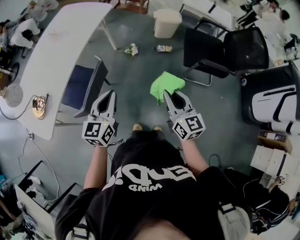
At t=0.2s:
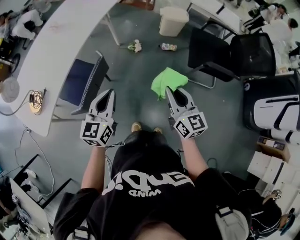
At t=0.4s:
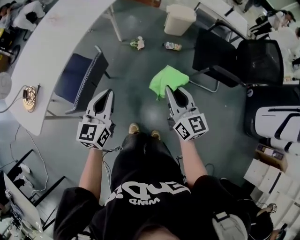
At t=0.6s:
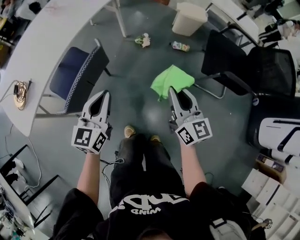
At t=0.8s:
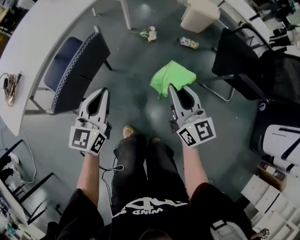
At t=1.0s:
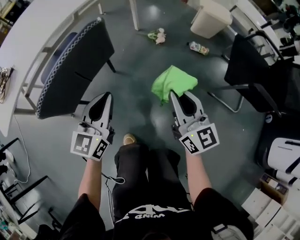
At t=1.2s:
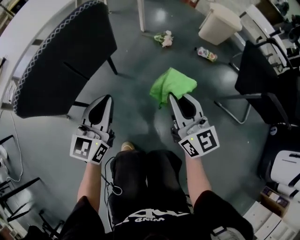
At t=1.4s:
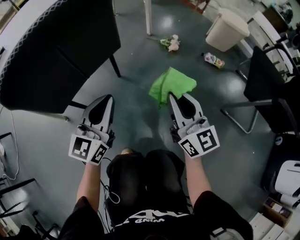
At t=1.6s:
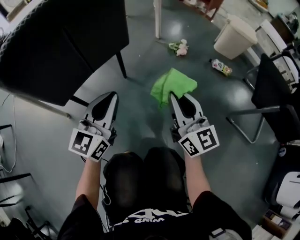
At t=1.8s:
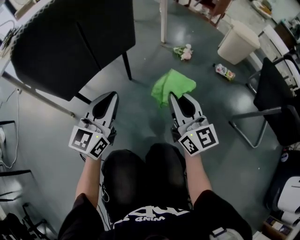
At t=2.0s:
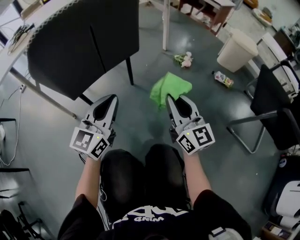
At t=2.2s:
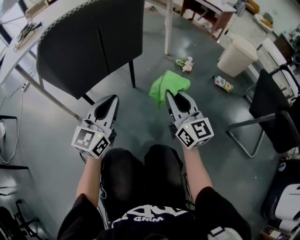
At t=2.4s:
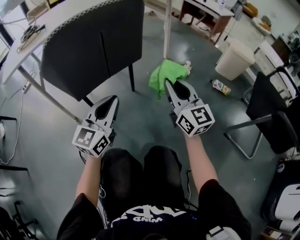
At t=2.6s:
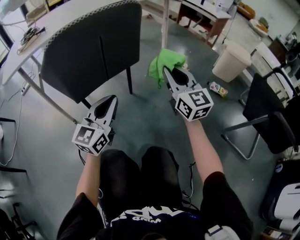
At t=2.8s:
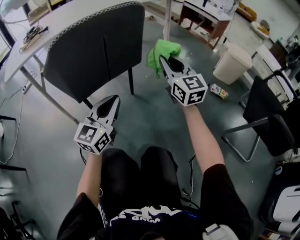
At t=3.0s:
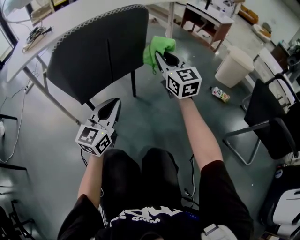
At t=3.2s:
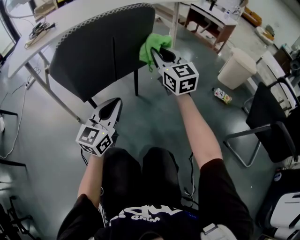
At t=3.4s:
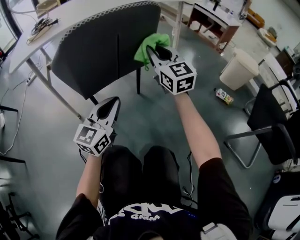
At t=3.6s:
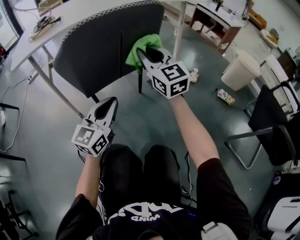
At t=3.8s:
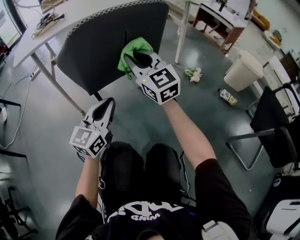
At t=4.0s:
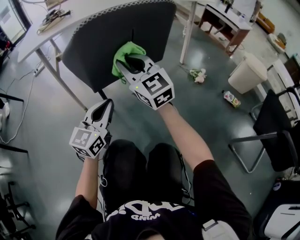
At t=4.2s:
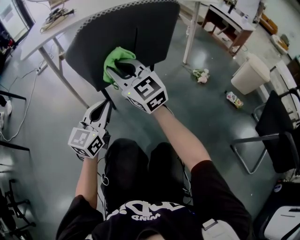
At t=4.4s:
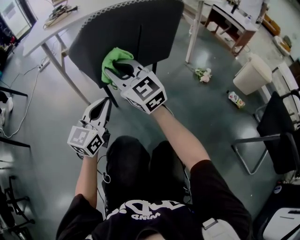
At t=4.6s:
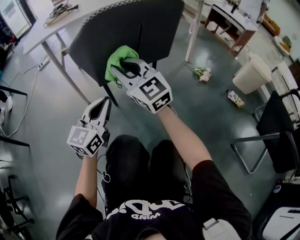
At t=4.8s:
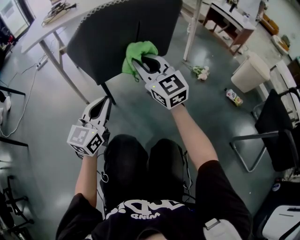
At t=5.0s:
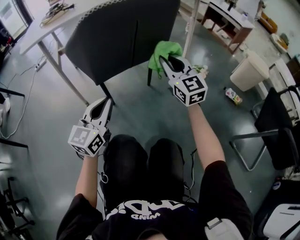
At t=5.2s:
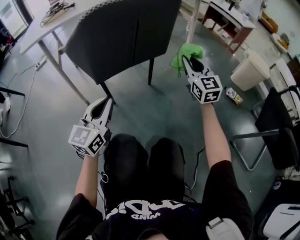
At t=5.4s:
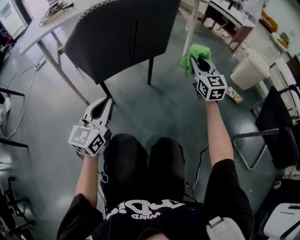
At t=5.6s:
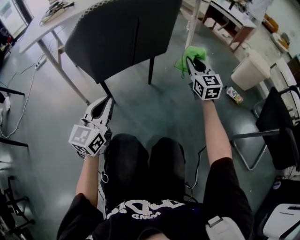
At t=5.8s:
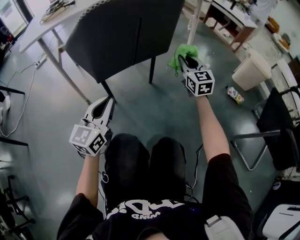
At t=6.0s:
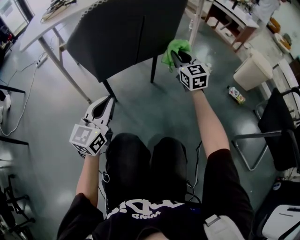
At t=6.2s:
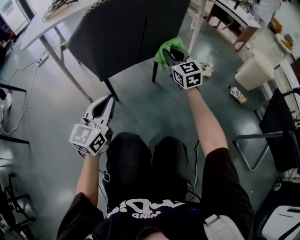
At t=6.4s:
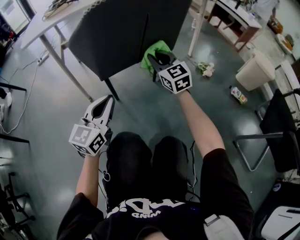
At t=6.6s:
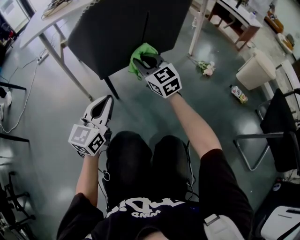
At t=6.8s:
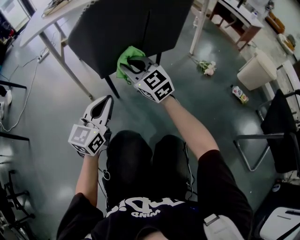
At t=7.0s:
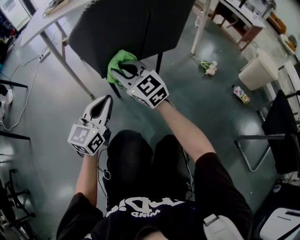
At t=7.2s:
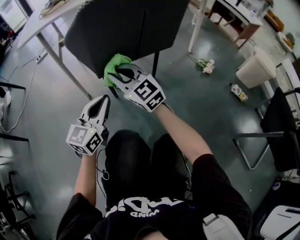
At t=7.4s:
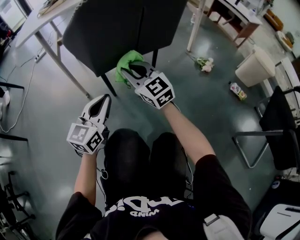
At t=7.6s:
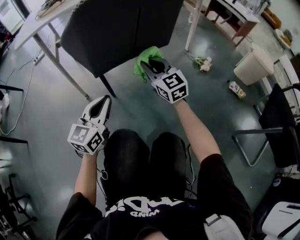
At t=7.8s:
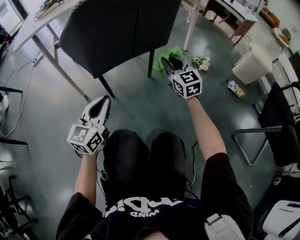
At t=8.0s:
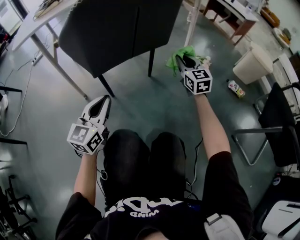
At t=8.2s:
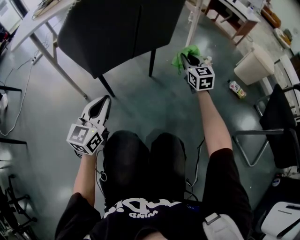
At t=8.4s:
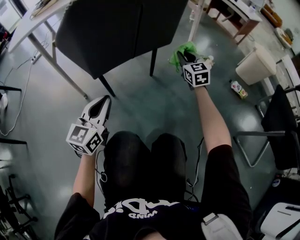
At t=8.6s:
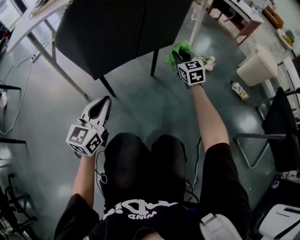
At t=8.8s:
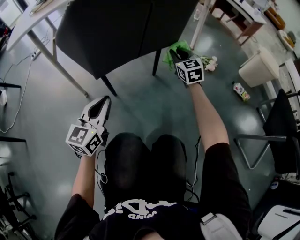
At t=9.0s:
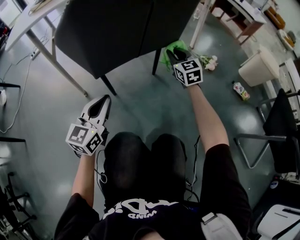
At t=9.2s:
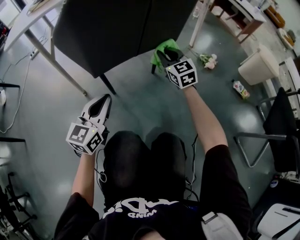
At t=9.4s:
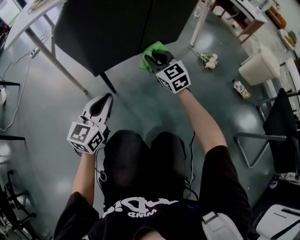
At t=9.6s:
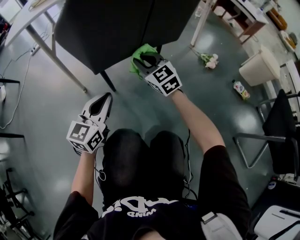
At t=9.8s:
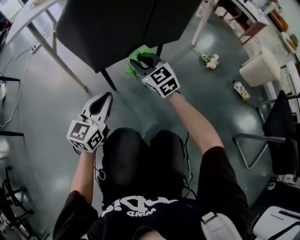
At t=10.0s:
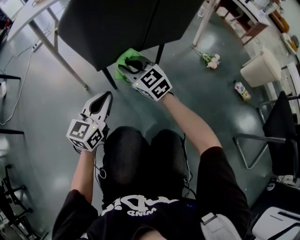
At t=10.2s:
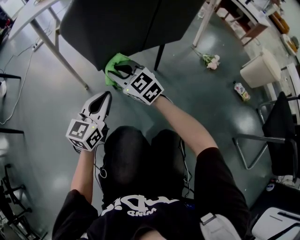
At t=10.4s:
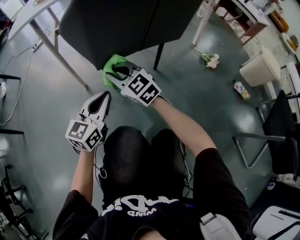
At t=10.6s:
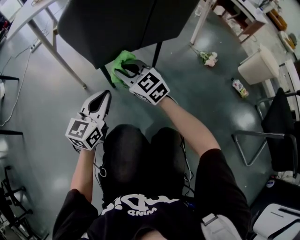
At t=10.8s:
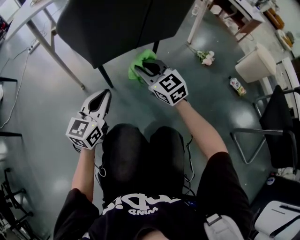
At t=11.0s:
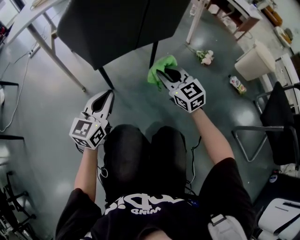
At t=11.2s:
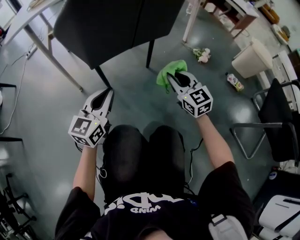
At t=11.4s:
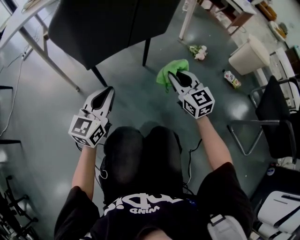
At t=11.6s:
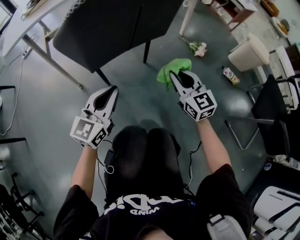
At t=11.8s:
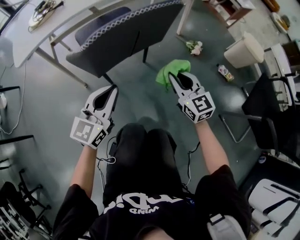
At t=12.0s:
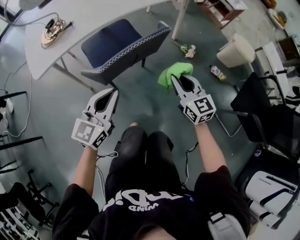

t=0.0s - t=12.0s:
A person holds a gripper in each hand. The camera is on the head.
t=0.0s - t=1.6s: The grippers both shift downward by roughly 50 cm. The left gripper swivels about 20 degrees. Meanwhile the right gripper swivels approximately 30 degrees.
t=1.6s - t=3.0s: The left gripper ends up some 5 cm from where it was. Meanwhile the right gripper goes roughly 20 cm forward, upward and to the left.
t=3.0s - t=4.4s: The right gripper travels to the left by some 25 cm, and changes its angle by approximately 30 degrees. Meanwhile the left gripper shifts approximately 10 cm to the left.
t=4.4s - t=6.0s: The right gripper moves to the right, forward and downward, some 30 cm, and rotates some 30 degrees.
t=6.0s - t=7.6s: The right gripper travels to the left and backward by roughly 15 cm.
t=7.6s - t=9.0s: The right gripper shifts about 15 cm forward, to the right and downward.
t=9.0s - t=10.4s: The right gripper heads to the left and backward, covering some 30 cm, and rotates roughly 30 degrees.
t=10.4s - t=12.0s: The left gripper shifts about 35 cm upward. The right gripper goes approximately 40 cm upward and to the right, and rotates about 40 degrees.

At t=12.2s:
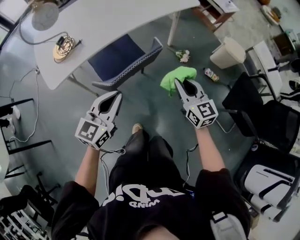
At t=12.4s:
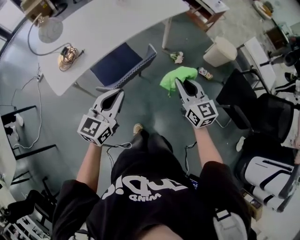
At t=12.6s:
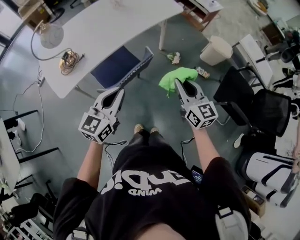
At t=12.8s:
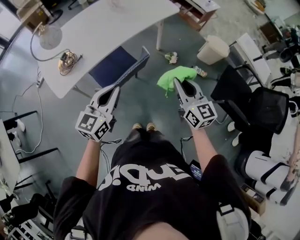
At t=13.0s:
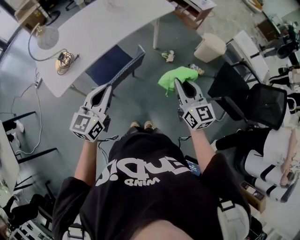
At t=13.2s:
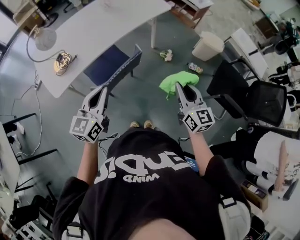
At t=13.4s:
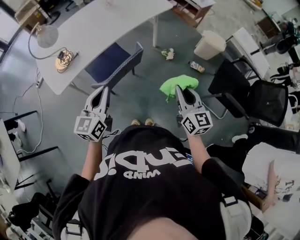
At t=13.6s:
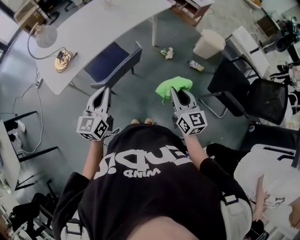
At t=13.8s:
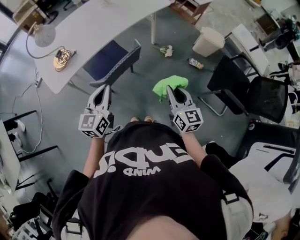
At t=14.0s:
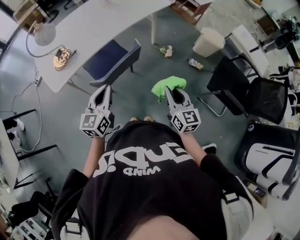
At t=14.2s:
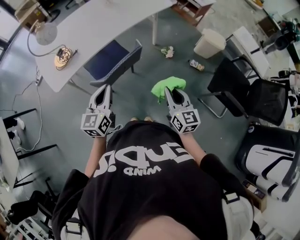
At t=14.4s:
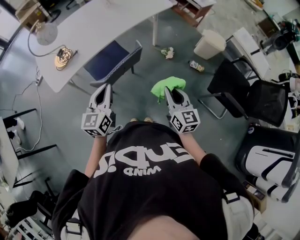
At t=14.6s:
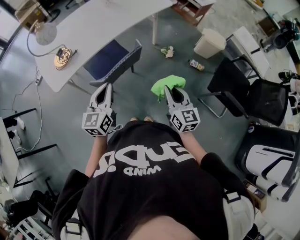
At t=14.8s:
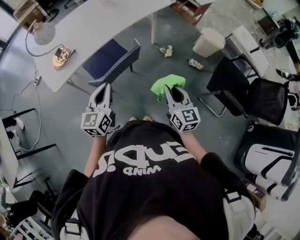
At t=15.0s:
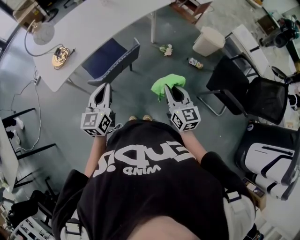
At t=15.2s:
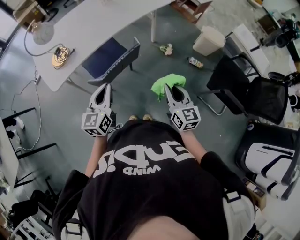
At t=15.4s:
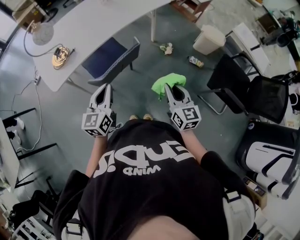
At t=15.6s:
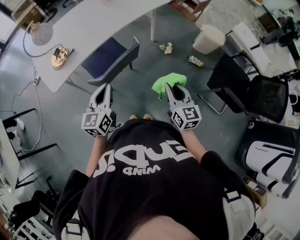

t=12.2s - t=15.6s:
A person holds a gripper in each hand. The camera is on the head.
t=12.2s - t=13.8s: The right gripper is displaced backward, upward and to the right by about 15 cm; the left gripper goes approximately 10 cm upward.
t=13.8s - t=15.6s: The grippers stay close to where they were, moving slightly.

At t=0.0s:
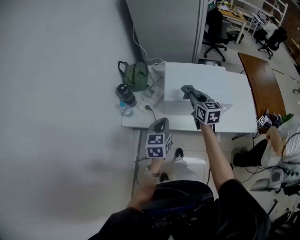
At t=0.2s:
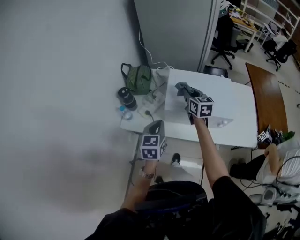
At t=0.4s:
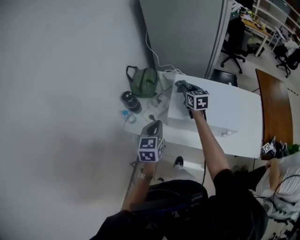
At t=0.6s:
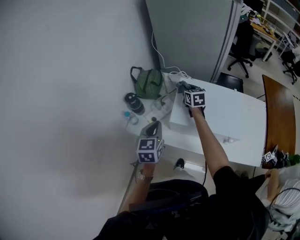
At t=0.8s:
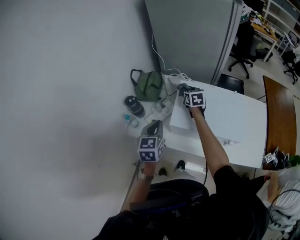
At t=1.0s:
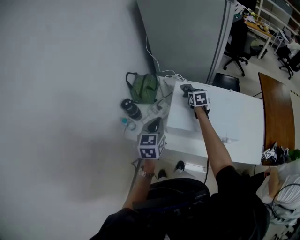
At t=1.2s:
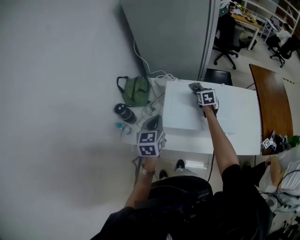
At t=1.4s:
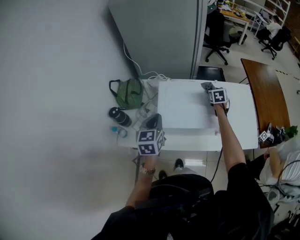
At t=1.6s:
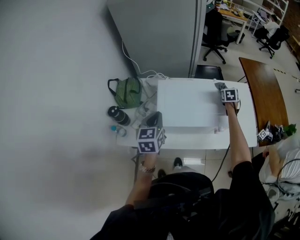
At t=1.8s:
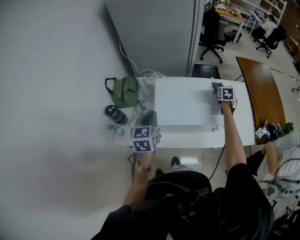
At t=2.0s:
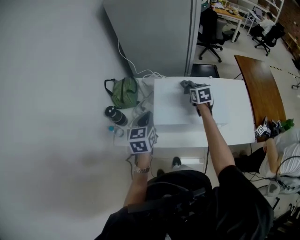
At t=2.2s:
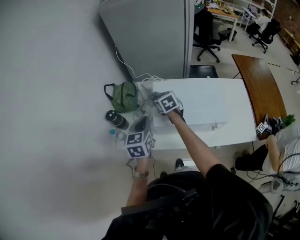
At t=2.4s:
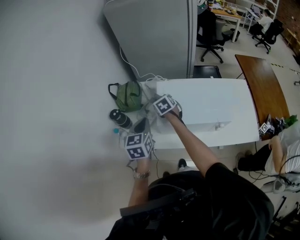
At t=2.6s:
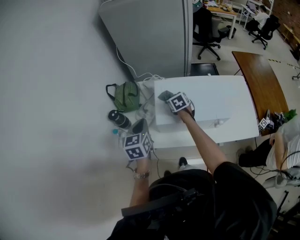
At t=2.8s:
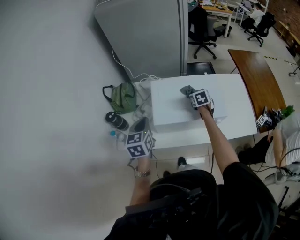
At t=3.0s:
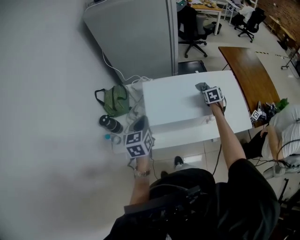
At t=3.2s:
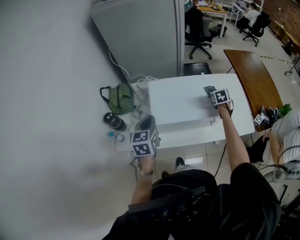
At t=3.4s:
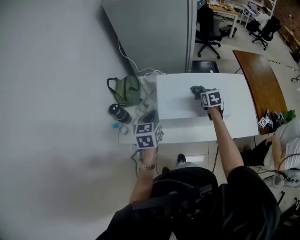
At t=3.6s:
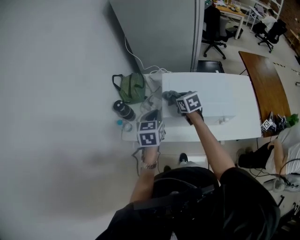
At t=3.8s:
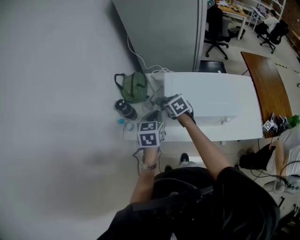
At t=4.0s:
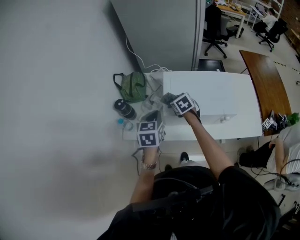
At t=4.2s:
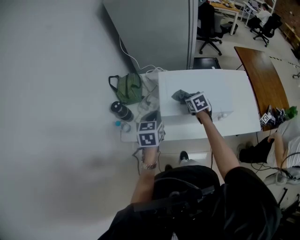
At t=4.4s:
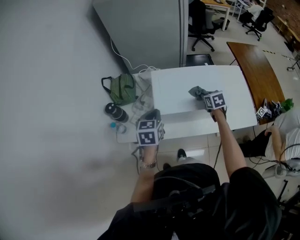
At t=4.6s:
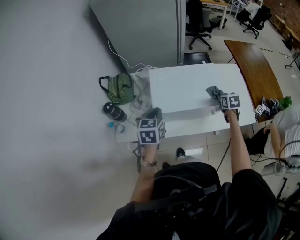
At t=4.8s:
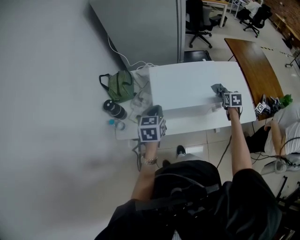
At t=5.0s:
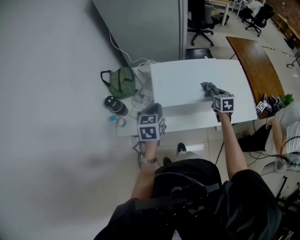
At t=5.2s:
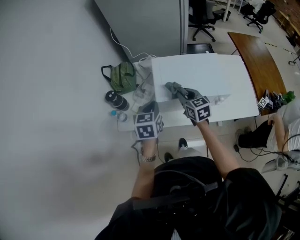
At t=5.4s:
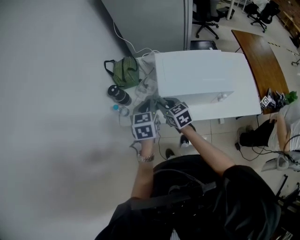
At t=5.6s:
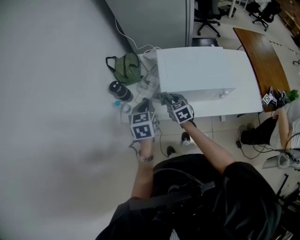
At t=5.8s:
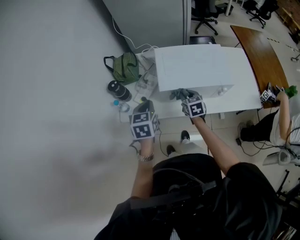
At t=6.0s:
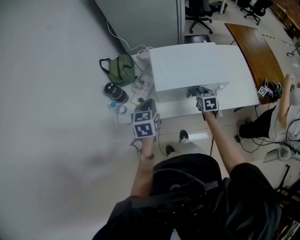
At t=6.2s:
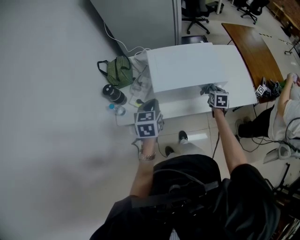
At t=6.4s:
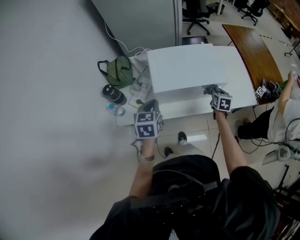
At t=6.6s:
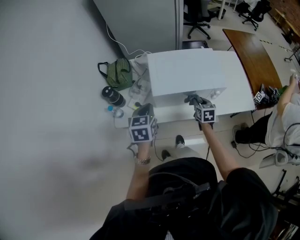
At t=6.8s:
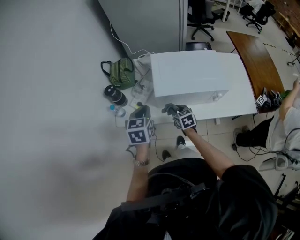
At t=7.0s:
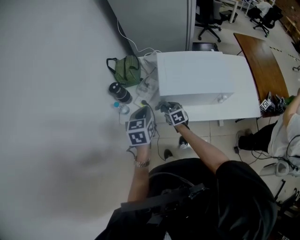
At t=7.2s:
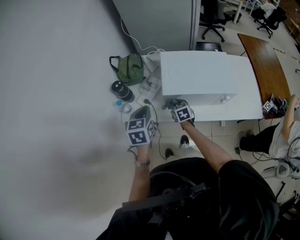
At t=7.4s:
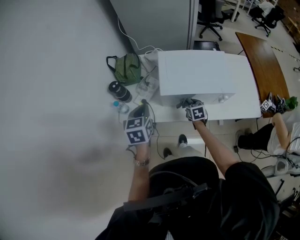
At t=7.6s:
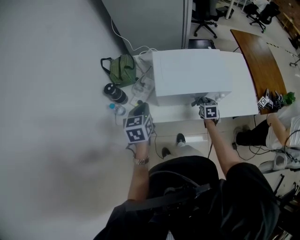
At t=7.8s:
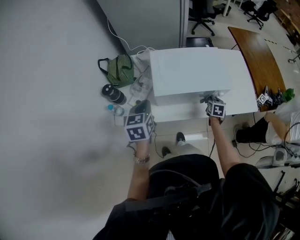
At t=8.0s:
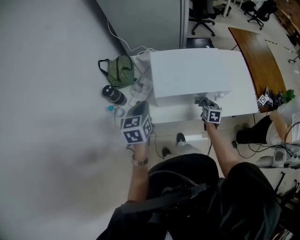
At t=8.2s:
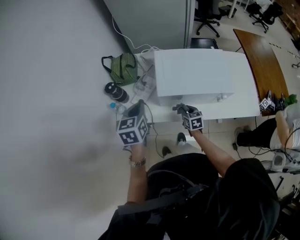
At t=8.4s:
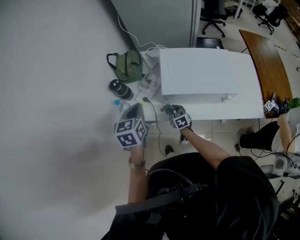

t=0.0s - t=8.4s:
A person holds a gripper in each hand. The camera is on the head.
t=0.0s - t=1.4s: The left gripper changes place by some 15 cm. Meanwhile the right gripper moves some 35 cm, and rotates roughly 40 degrees.
t=4.2s - t=5.6s: The left gripper changes place by about 5 cm. The right gripper moves about 5 cm upward and comes back.
t=5.6s - t=7.0s: The right gripper shifts some 5 cm downward.
t=7.0s - t=8.4s: The right gripper heads downward, covering approximately 10 cm.
